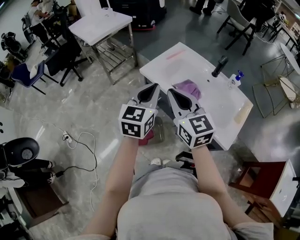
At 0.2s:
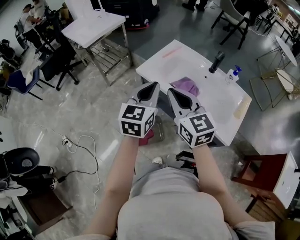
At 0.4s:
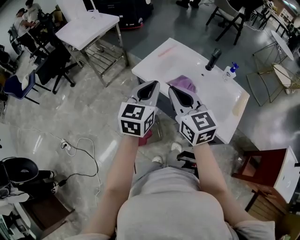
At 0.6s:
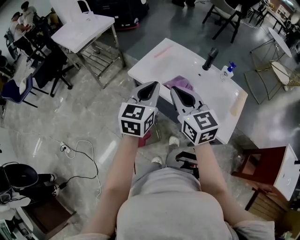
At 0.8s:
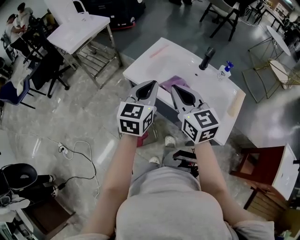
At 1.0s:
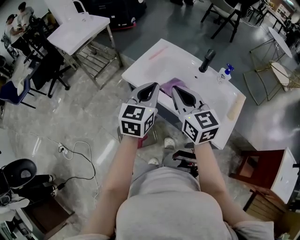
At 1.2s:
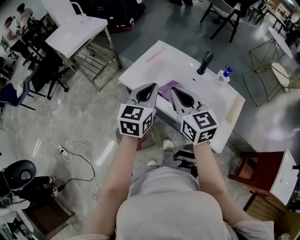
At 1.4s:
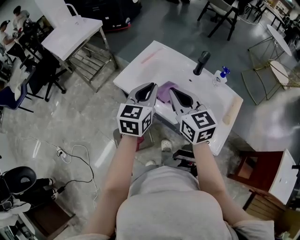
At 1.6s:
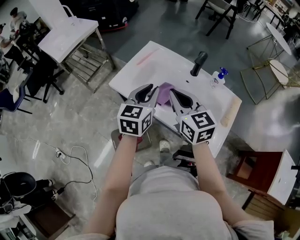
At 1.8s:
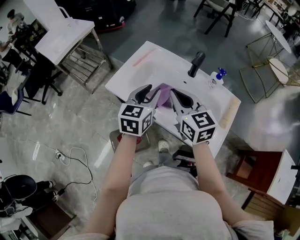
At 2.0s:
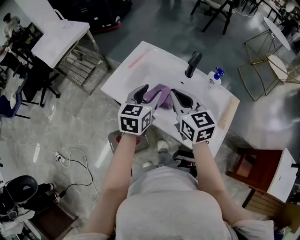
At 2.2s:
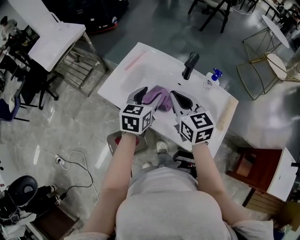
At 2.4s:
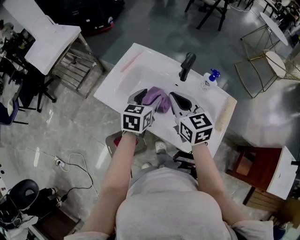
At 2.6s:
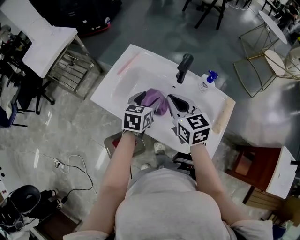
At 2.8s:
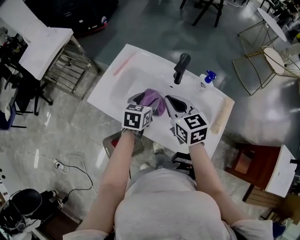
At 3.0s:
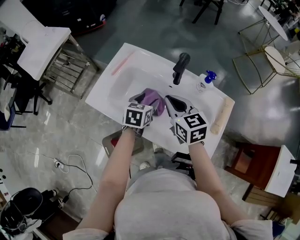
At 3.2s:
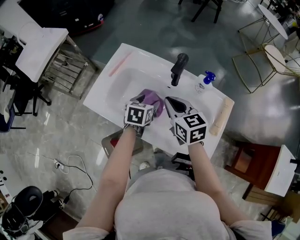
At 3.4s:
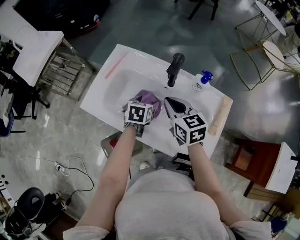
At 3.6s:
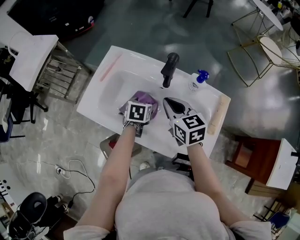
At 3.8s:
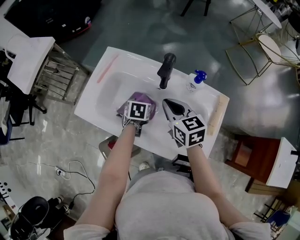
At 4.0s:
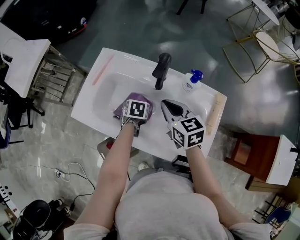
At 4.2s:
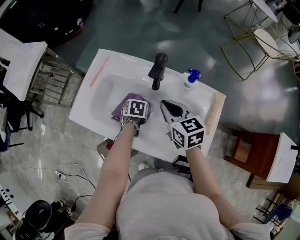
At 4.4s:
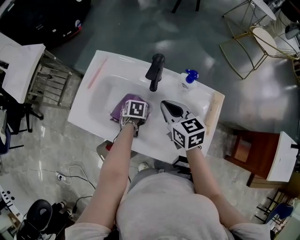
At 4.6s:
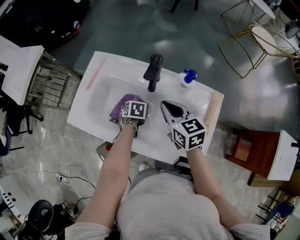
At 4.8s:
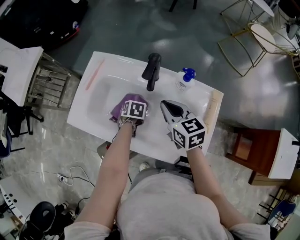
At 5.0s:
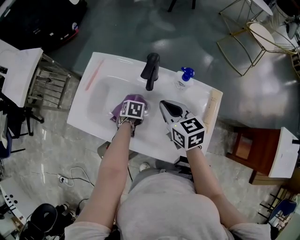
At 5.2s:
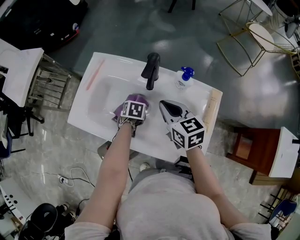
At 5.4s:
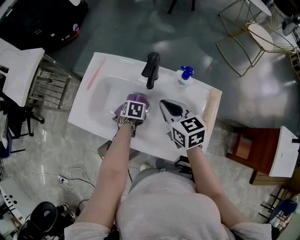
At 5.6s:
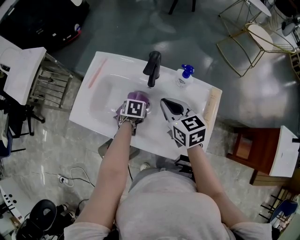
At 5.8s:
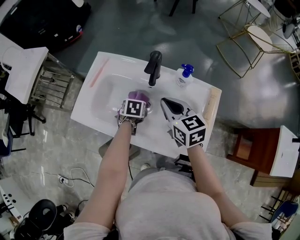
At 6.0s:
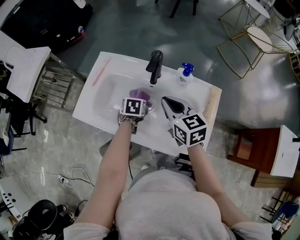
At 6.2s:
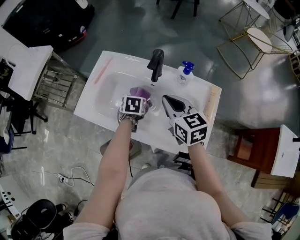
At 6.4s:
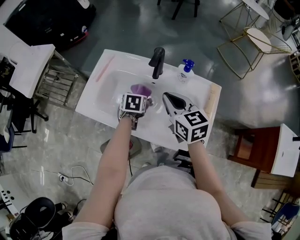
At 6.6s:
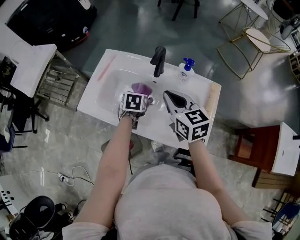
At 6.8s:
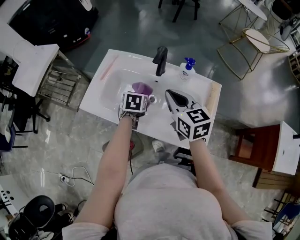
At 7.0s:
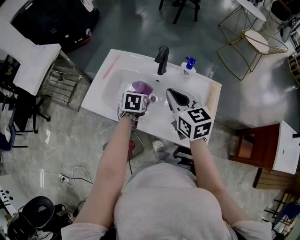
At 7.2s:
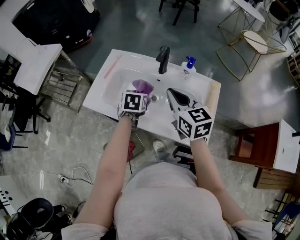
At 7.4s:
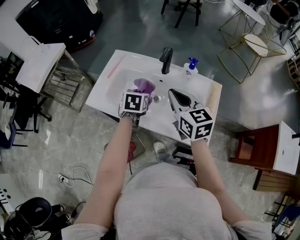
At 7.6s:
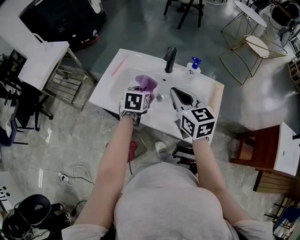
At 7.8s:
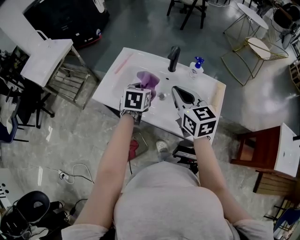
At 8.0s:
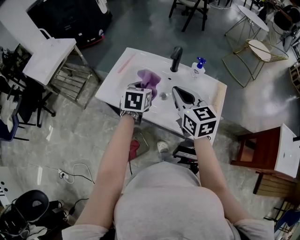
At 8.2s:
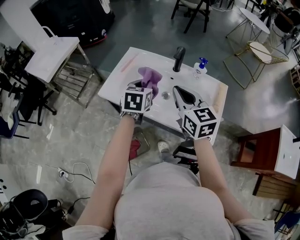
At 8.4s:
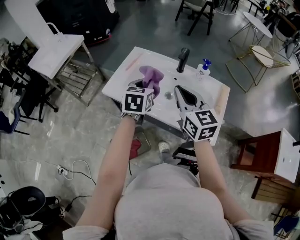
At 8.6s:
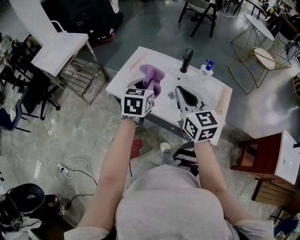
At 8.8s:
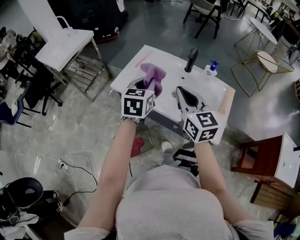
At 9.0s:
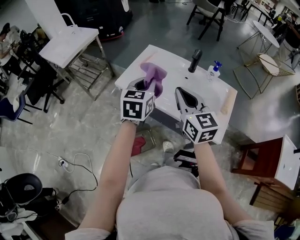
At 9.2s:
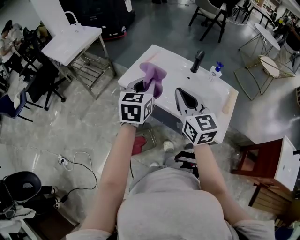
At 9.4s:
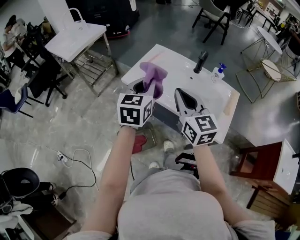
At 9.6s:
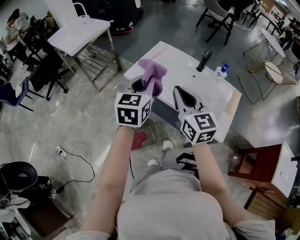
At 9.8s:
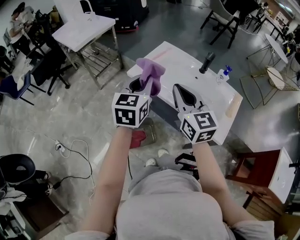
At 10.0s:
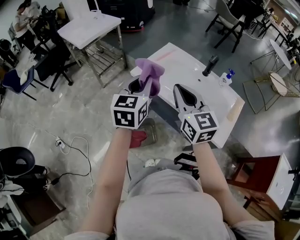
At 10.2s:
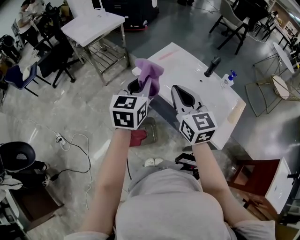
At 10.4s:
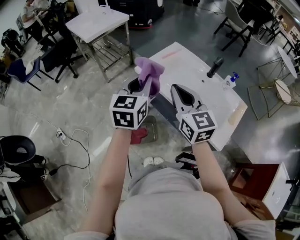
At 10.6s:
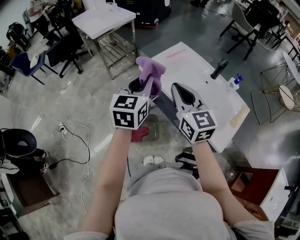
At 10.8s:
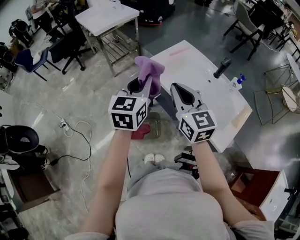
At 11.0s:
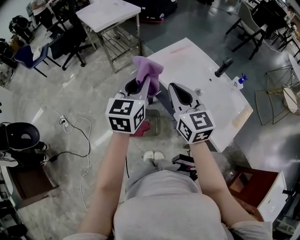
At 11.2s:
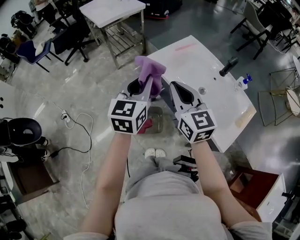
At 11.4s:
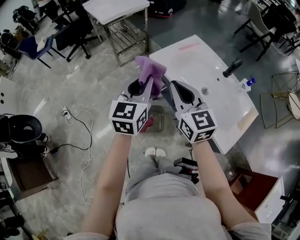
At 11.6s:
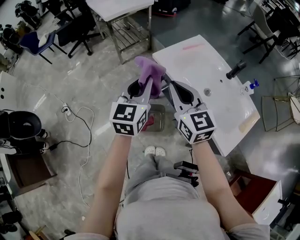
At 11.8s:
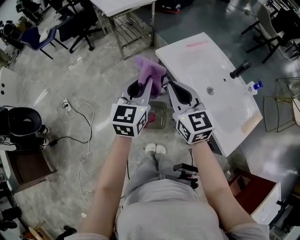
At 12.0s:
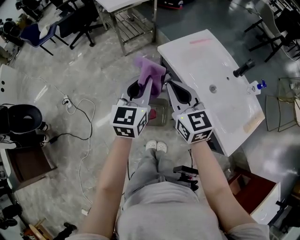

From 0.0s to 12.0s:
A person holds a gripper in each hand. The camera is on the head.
From 0.0s to 1.6s: The left gripper travels to the right, forward and downward by roughly 20 cm. Meanwhile the right gripper shifts some 15 cm to the right and forward.
From 1.6s to 3.0s: The right gripper travels downward, forward and to the right by about 15 cm. The left gripper heads downward, to the right and forward, covering roughly 20 cm, turns by some 30 degrees, and opens.
From 3.0s to 4.4s: The left gripper travels downward by some 15 cm, and swivels roughly 30 degrees. Meanwhile the right gripper travels to the right by roughly 5 cm.
From 4.4s to 6.0s: The left gripper heads upward, covering approximately 5 cm, and closes up.
From 6.0s to 7.6s: The left gripper goes some 15 cm upward. Meanwhile the right gripper shifts approximately 10 cm upward and backward.
From 7.6s to 9.0s: The left gripper shifts about 20 cm upward, to the left and backward, and swivels some 20 degrees; the right gripper moves to the left and backward, some 15 cm.
From 9.0s to 10.4s: The left gripper heads to the left and backward, covering approximately 10 cm; the right gripper is displaced to the left by about 10 cm.
From 10.4s to 12.0s: Both grippers move to the left and downward, approximately 10 cm.

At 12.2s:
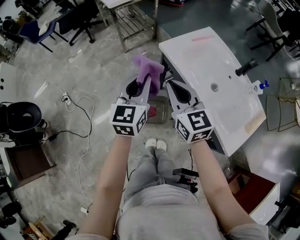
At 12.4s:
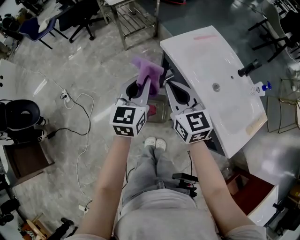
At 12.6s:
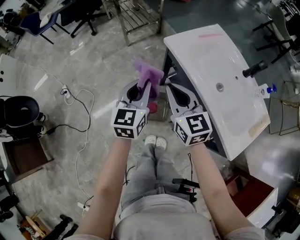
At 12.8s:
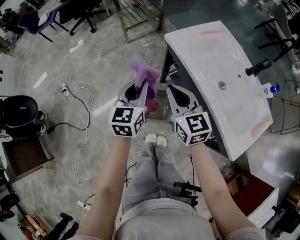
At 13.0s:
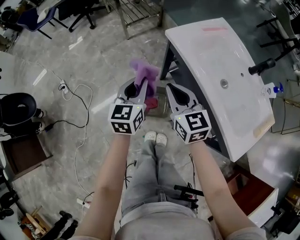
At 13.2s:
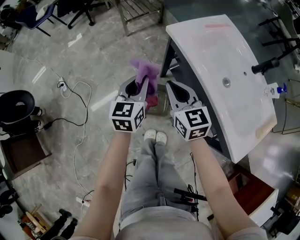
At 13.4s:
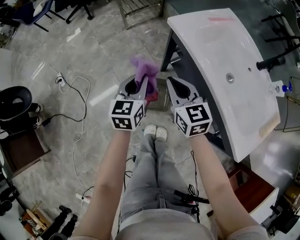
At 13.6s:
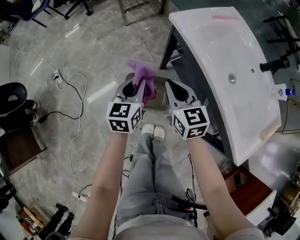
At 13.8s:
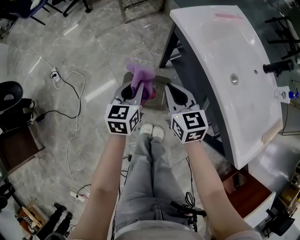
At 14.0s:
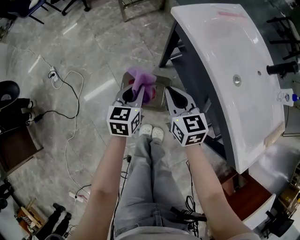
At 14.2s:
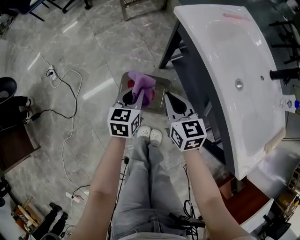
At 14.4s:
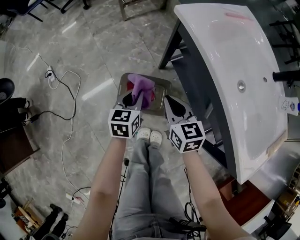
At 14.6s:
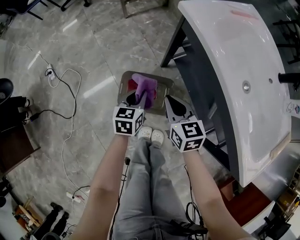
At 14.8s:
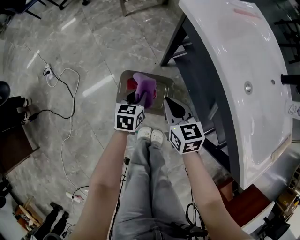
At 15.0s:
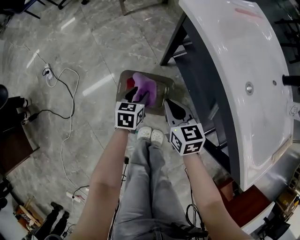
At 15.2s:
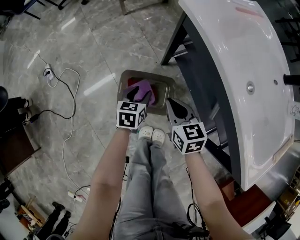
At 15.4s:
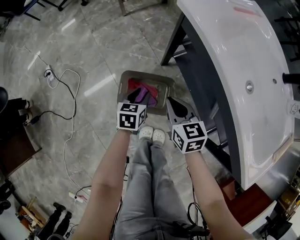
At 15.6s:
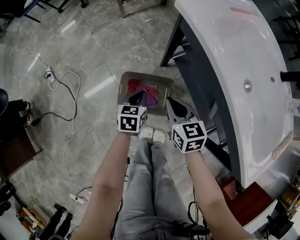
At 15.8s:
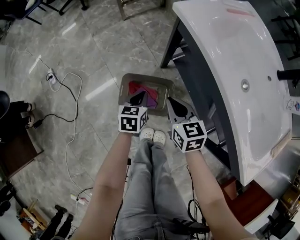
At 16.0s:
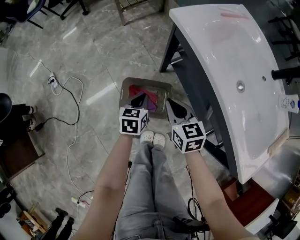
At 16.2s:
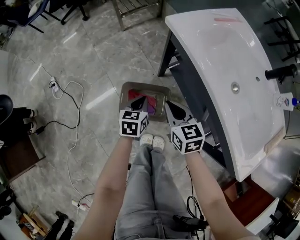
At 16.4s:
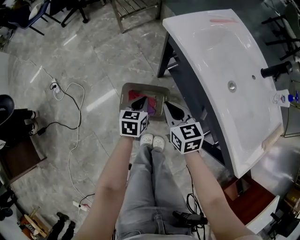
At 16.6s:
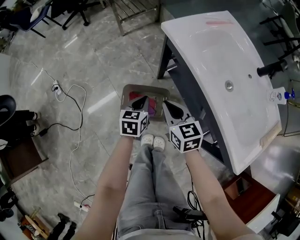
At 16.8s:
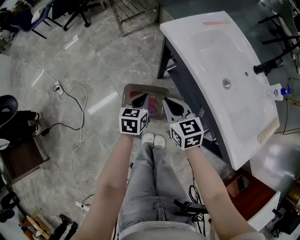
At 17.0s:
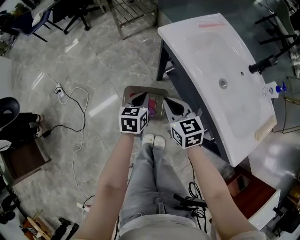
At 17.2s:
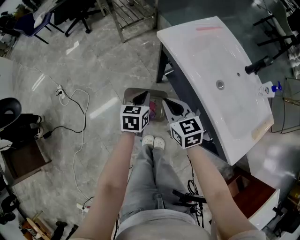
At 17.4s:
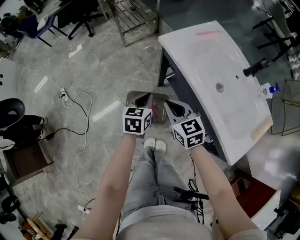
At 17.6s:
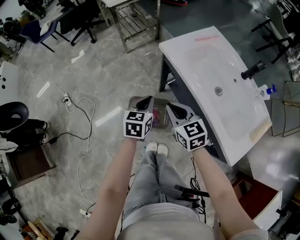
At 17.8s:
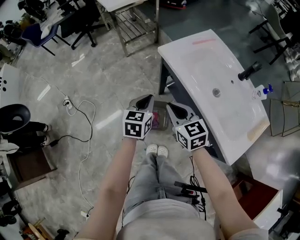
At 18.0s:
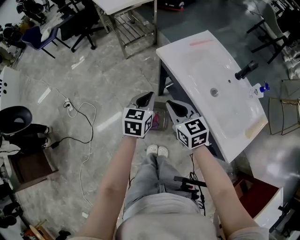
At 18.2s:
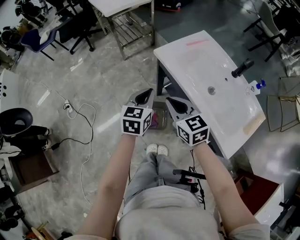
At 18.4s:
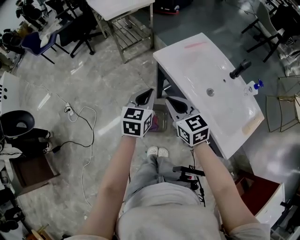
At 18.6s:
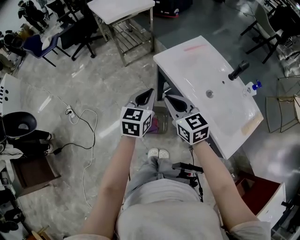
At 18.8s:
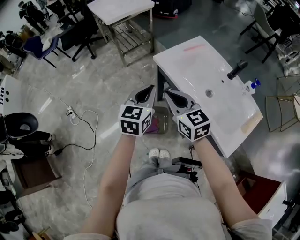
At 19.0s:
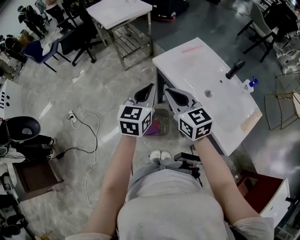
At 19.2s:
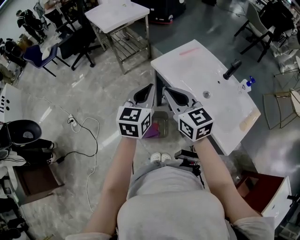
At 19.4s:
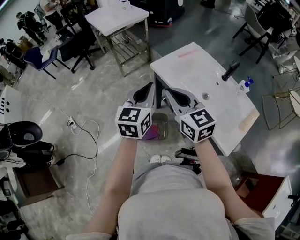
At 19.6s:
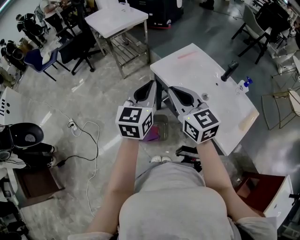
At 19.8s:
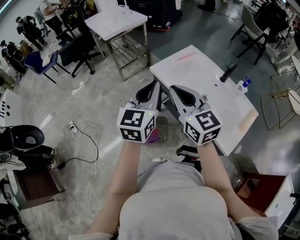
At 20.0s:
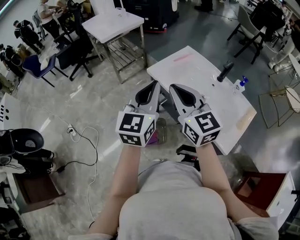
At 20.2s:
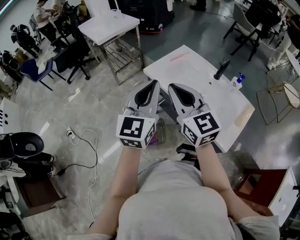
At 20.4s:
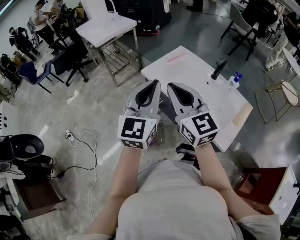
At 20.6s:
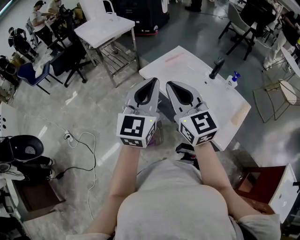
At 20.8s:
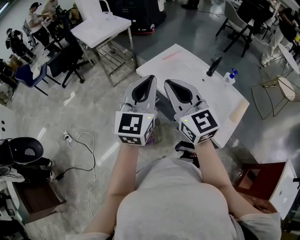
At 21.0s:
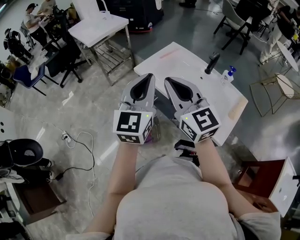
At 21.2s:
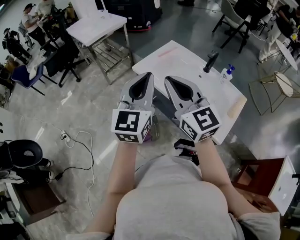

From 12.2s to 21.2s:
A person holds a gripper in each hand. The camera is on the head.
From 12.2s to 13.8s: The grippers both shift downward by about 25 cm. The left gripper changes its angle by about 20 degrees.
From 13.8s to 15.2s: Both grippers move downward, roughly 15 cm. The left gripper opens its fingers.
From 15.2s to 16.6s: Both grippers travel together upward, approximately 10 cm. The left gripper closes its fingers.
From 16.6s to 18.2s: The two grippers go about 20 cm upward.
From 18.2s to 19.8s: The two grippers go some 20 cm upward. The left gripper turns by roughly 20 degrees.
From 19.8s to 21.2s: The left gripper changes place by some 5 cm. The right gripper moves about 5 cm.

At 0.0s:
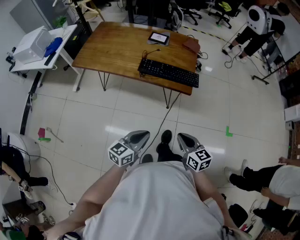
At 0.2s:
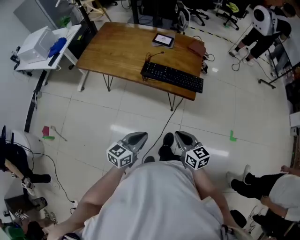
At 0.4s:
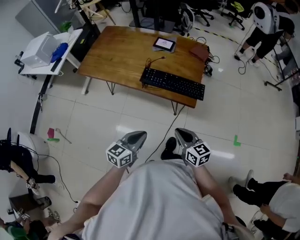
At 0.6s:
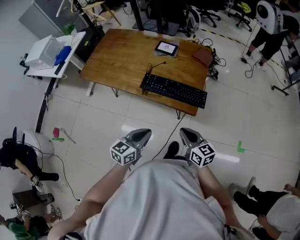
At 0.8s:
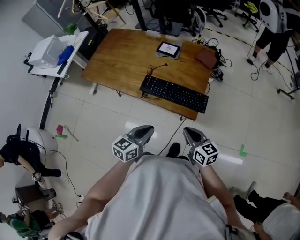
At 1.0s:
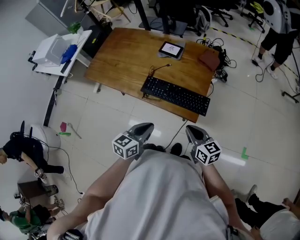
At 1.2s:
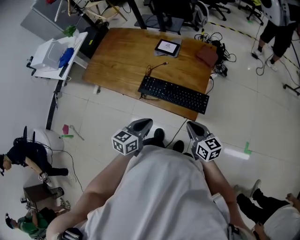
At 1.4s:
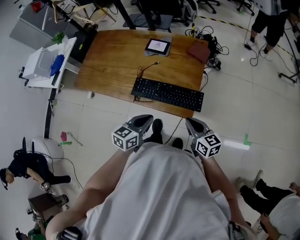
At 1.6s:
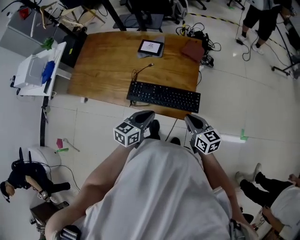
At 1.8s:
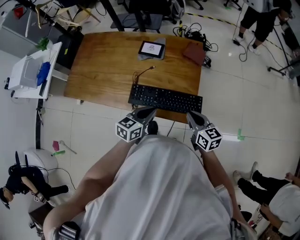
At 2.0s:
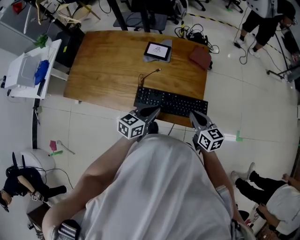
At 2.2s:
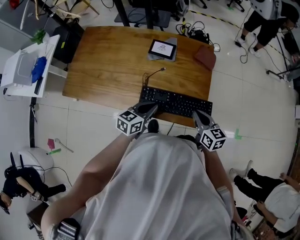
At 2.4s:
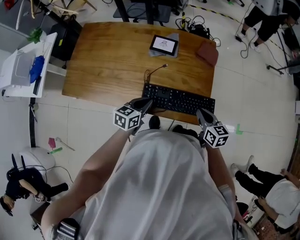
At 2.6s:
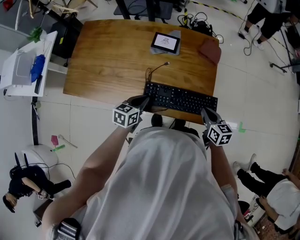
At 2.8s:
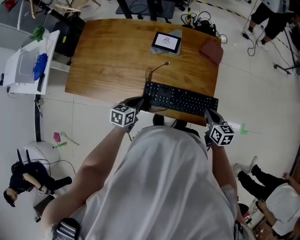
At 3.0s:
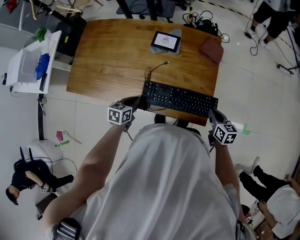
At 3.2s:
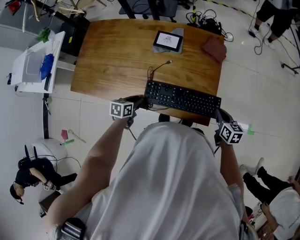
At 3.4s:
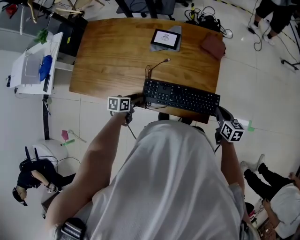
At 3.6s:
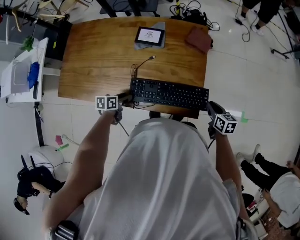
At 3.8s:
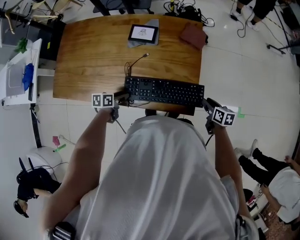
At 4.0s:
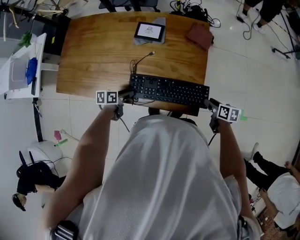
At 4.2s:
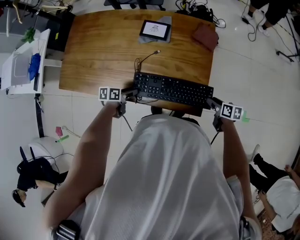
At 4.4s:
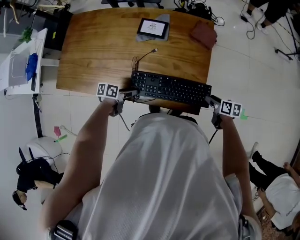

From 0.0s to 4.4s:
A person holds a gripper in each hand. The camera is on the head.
From 0.0s to 1.4s: Both grippers travel together forward, roughly 25 cm.
From 1.4s to 3.0s: The right gripper goes some 15 cm forward and downward, and changes its angle by about 30 degrees. The left gripper travels to the left, downward and forward by about 25 cm, and changes its angle by about 20 degrees.
From 3.0s to 4.4s: The right gripper travels downward and to the right by roughly 10 cm, changes its angle by roughly 30 degrees, and opens, while the left gripper travels downward by some 5 cm, rotates some 40 degrees, and opens its fingers.
